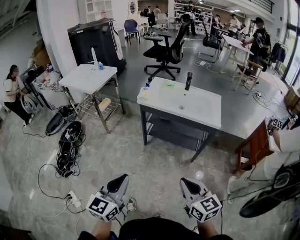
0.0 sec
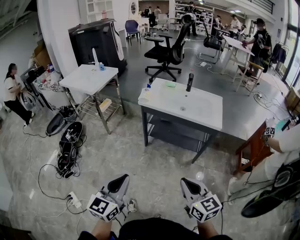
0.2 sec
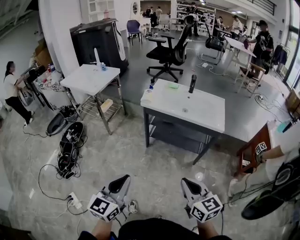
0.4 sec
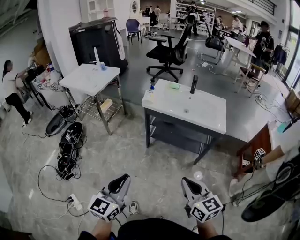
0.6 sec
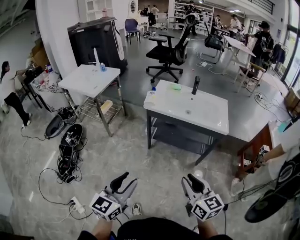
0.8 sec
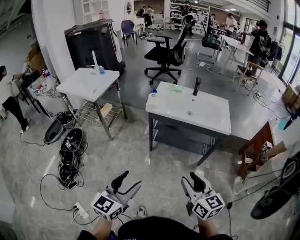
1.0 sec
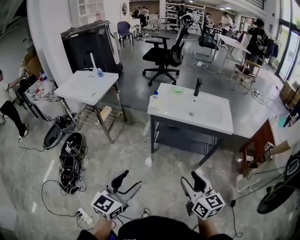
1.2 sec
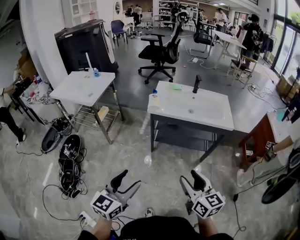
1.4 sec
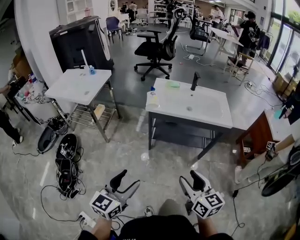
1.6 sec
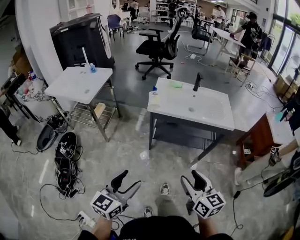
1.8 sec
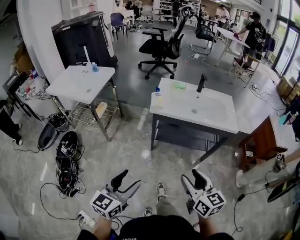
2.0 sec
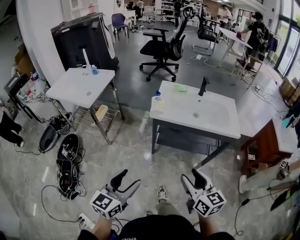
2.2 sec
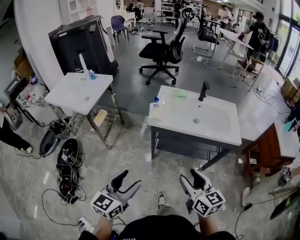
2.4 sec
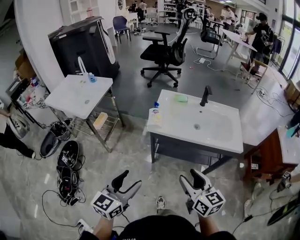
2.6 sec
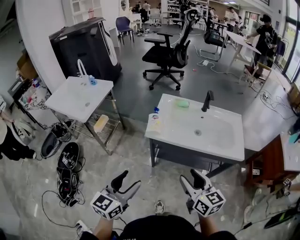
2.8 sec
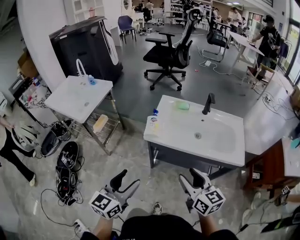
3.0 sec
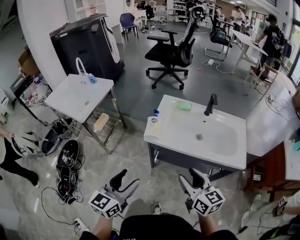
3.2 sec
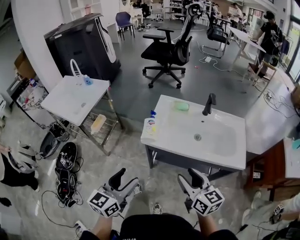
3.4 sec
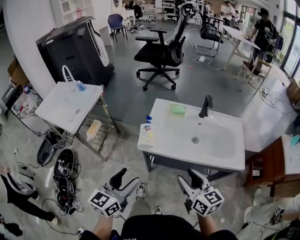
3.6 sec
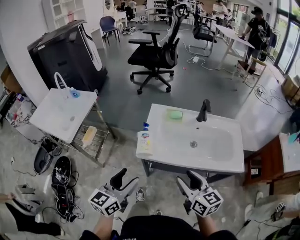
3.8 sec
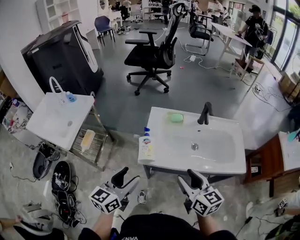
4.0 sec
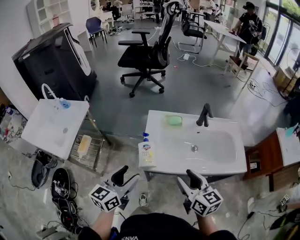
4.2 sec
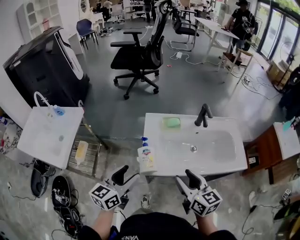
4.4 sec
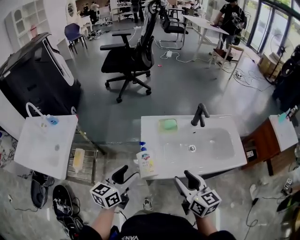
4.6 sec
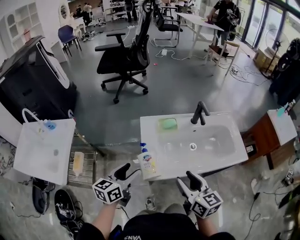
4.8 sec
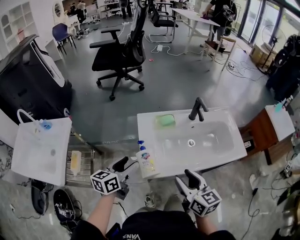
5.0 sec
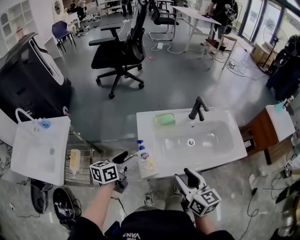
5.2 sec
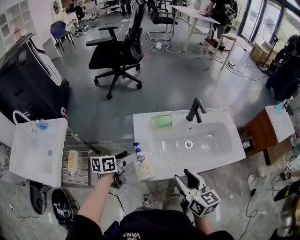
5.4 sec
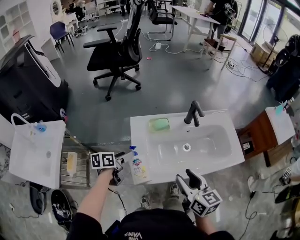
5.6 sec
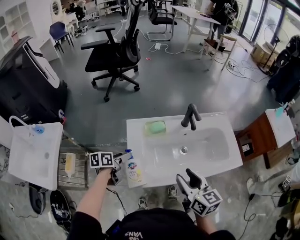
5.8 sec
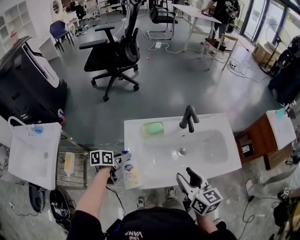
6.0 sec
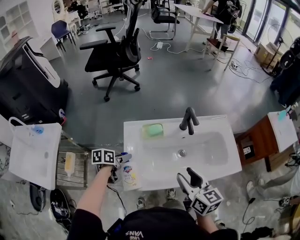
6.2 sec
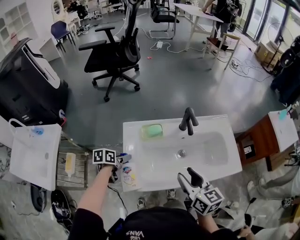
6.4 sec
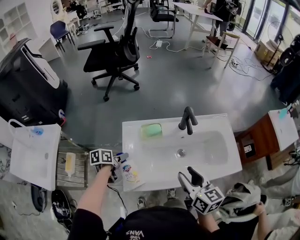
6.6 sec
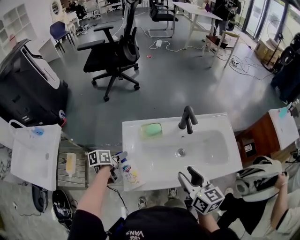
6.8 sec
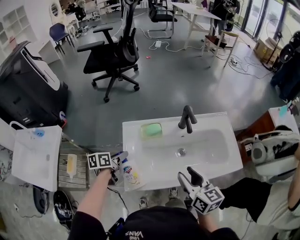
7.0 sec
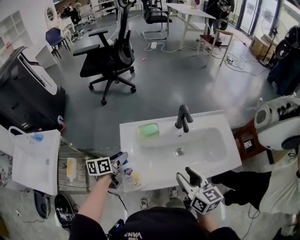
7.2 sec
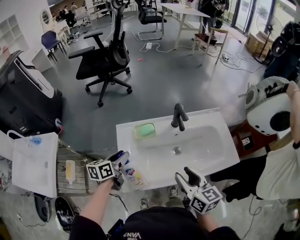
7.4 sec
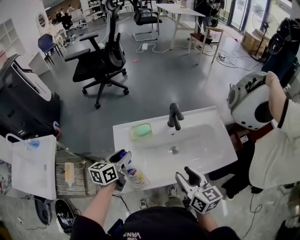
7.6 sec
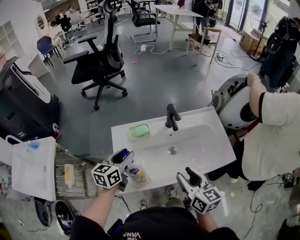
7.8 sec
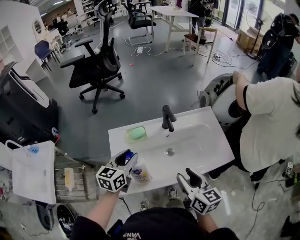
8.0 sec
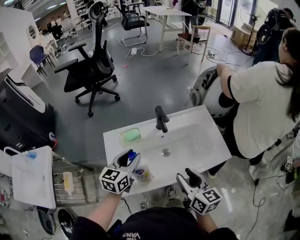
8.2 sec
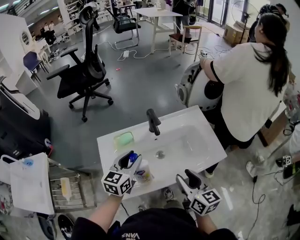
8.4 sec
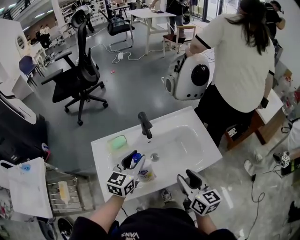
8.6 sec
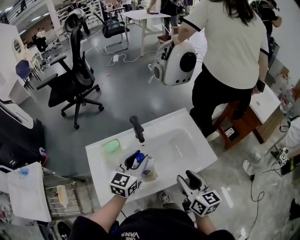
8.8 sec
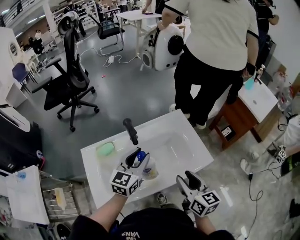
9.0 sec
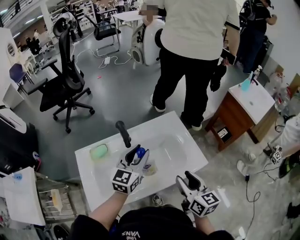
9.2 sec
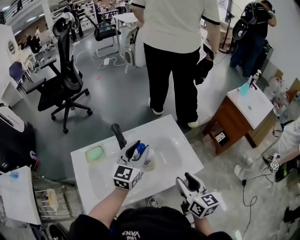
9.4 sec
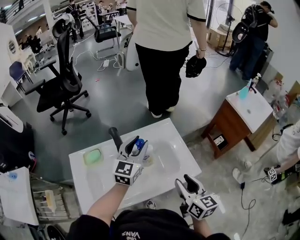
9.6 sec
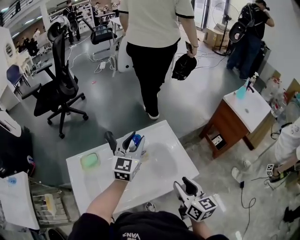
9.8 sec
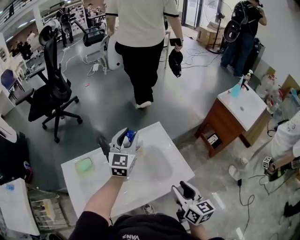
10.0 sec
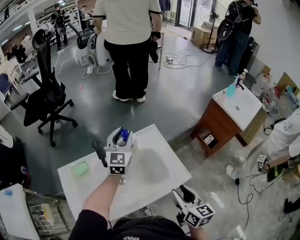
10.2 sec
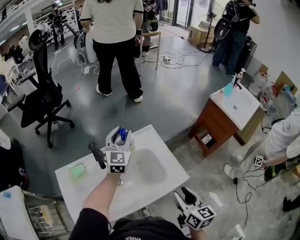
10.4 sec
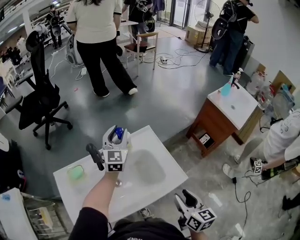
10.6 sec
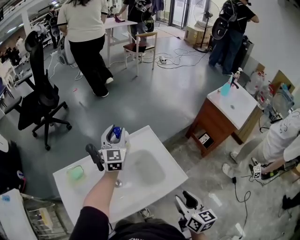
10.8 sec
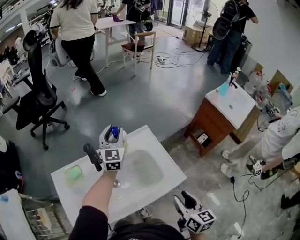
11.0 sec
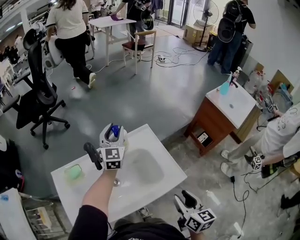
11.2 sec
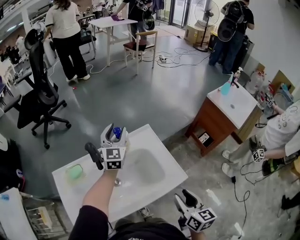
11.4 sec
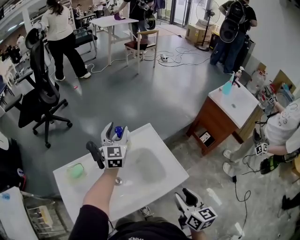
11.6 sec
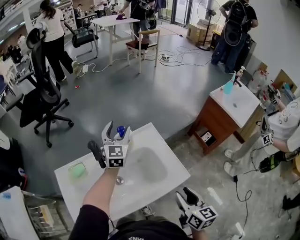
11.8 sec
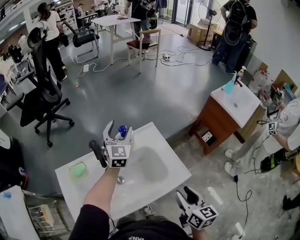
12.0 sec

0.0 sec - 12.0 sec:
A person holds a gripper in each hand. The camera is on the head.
0.0 sec - 1.6 sec: Both grippers move to the left and forward, about 20 cm. The left gripper opens up. Meanwhile the right gripper opens.
1.6 sec - 3.0 sec: The two grippers go about 25 cm forward.
3.0 sec - 4.4 sec: The grippers both shift forward by some 25 cm. The left gripper swivels about 20 degrees.
4.4 sec - 6.0 sec: The left gripper travels forward and downward by about 25 cm, and rotates about 40 degrees. The right gripper goes some 10 cm forward and to the right.
6.0 sec - 7.6 sec: The left gripper is displaced upward and to the right by some 15 cm, turns by about 30 degrees, and closes its fingers.
7.6 sec - 9.0 sec: The right gripper goes about 20 cm to the right. The left gripper travels to the right by some 30 cm, and swivels some 30 degrees.
9.0 sec - 10.4 sec: The right gripper heads to the right, covering approximately 10 cm, while the left gripper shifts about 20 cm forward, and rotates some 20 degrees.
10.4 sec - 12.0 sec: The left gripper opens its fingers.

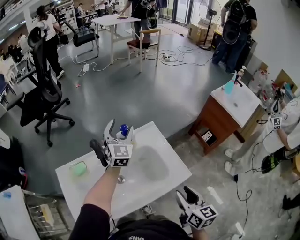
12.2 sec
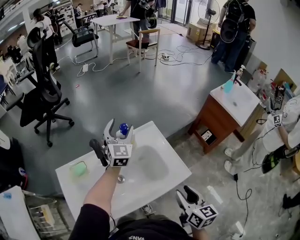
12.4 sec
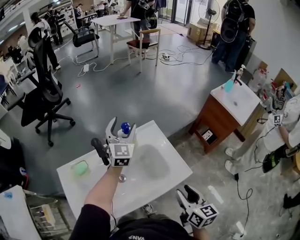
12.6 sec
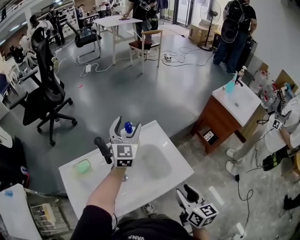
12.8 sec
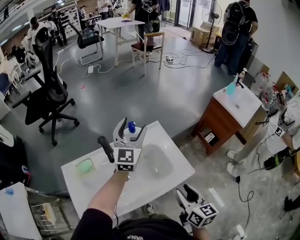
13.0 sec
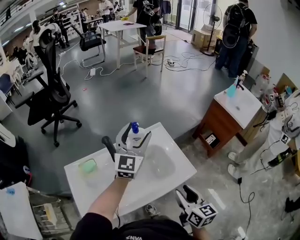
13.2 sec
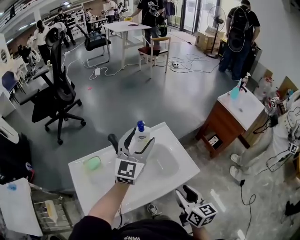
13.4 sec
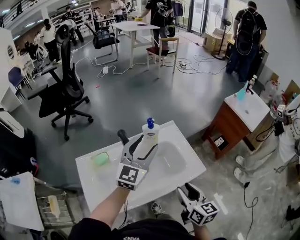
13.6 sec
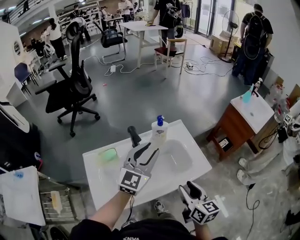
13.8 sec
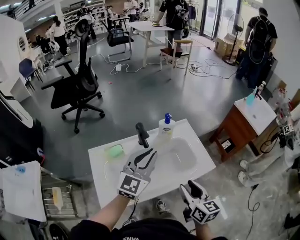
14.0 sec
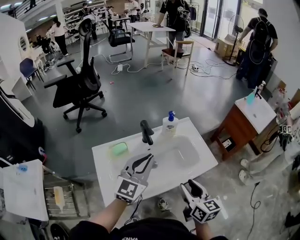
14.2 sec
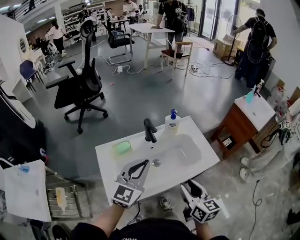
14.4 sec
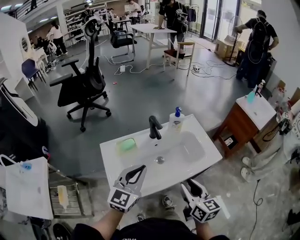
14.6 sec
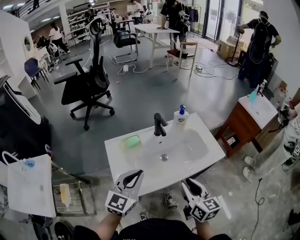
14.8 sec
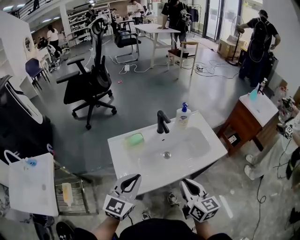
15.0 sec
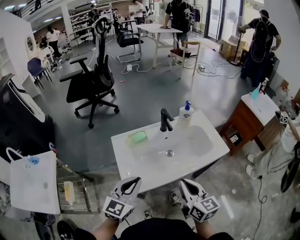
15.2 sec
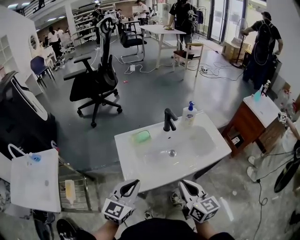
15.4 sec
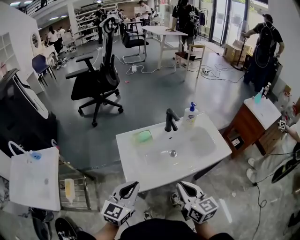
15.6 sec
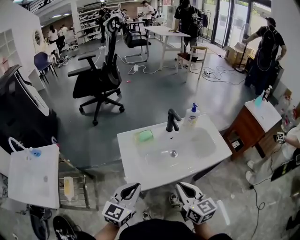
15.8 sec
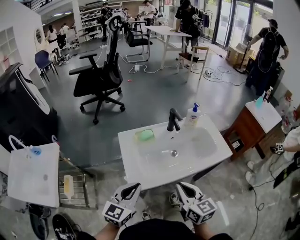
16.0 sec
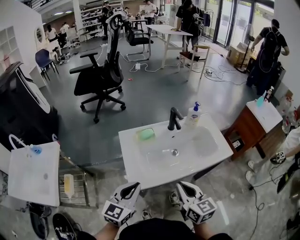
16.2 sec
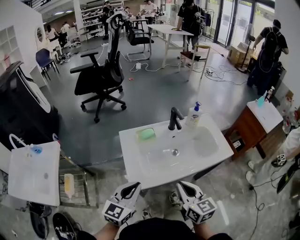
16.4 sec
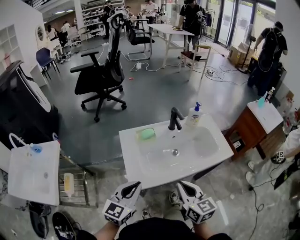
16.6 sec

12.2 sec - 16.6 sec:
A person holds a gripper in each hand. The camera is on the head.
12.2 sec - 13.6 sec: The right gripper travels to the left by approximately 10 cm. The left gripper heads backward and upward, covering about 20 cm, and turns by roughly 20 degrees.
13.6 sec - 15.2 sec: The left gripper is displaced backward and to the left by about 40 cm, and closes. The right gripper is displaced to the left and backward by about 25 cm, and closes up.
15.2 sec - 16.6 sec: The left gripper moves some 5 cm.

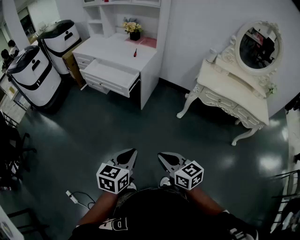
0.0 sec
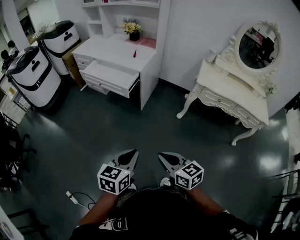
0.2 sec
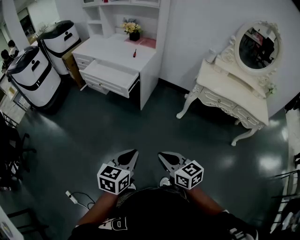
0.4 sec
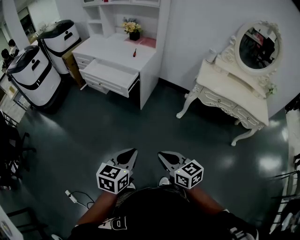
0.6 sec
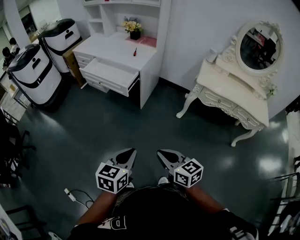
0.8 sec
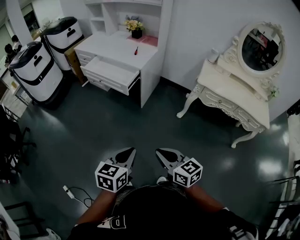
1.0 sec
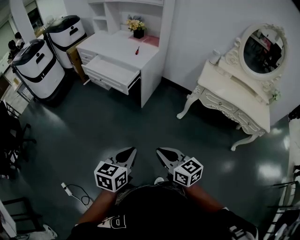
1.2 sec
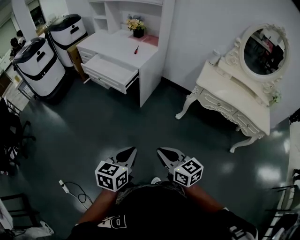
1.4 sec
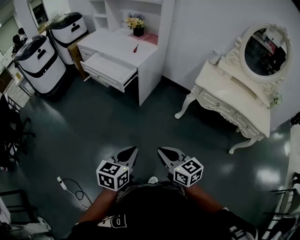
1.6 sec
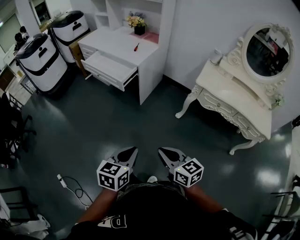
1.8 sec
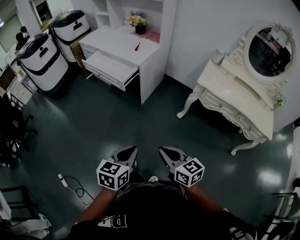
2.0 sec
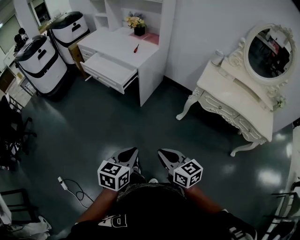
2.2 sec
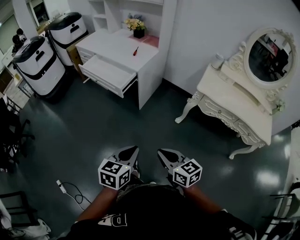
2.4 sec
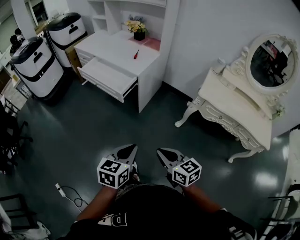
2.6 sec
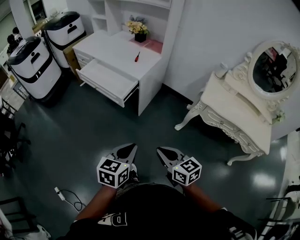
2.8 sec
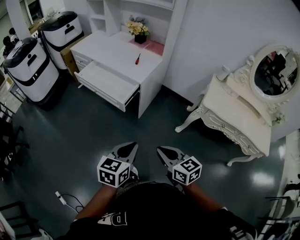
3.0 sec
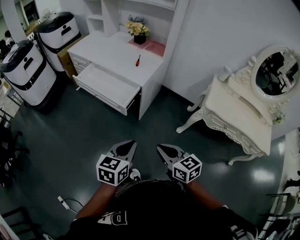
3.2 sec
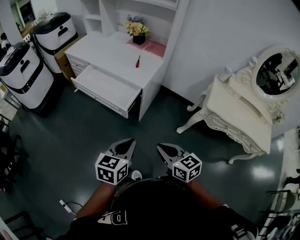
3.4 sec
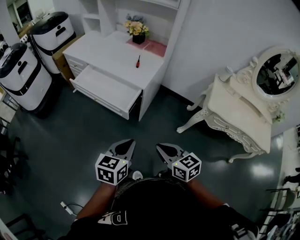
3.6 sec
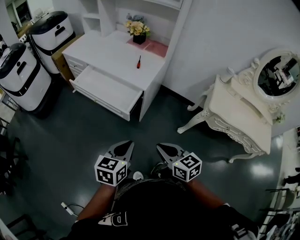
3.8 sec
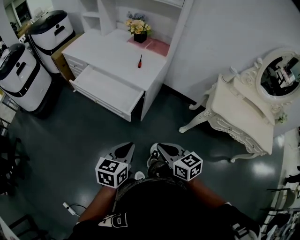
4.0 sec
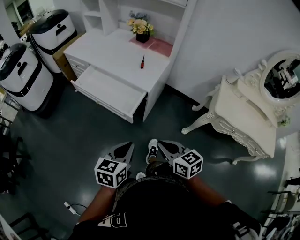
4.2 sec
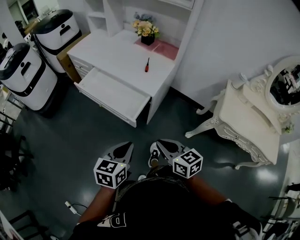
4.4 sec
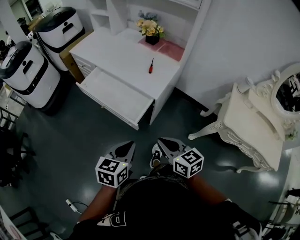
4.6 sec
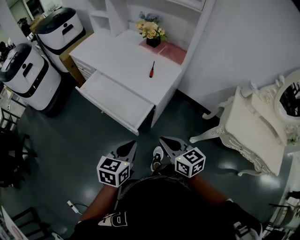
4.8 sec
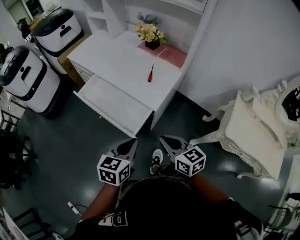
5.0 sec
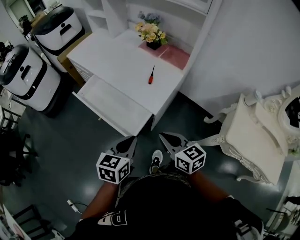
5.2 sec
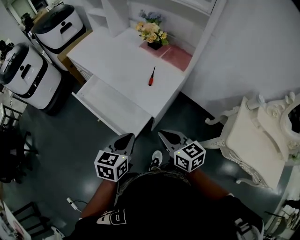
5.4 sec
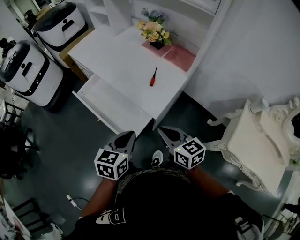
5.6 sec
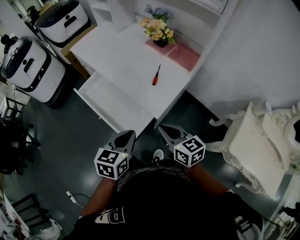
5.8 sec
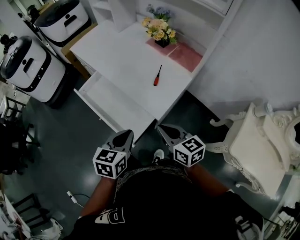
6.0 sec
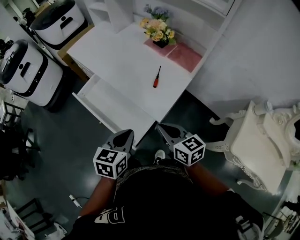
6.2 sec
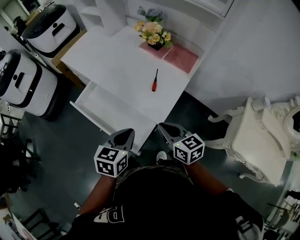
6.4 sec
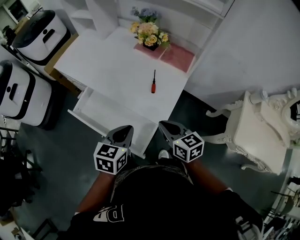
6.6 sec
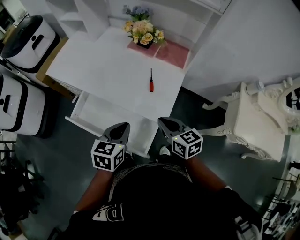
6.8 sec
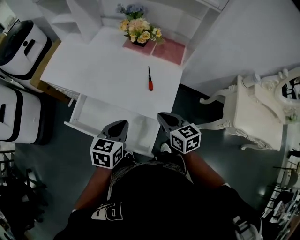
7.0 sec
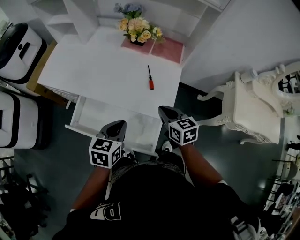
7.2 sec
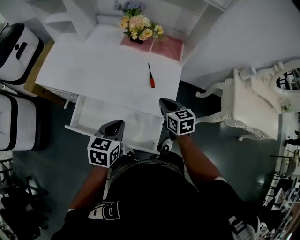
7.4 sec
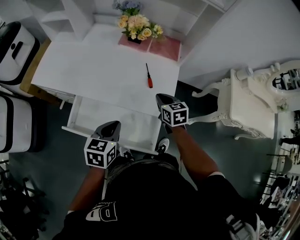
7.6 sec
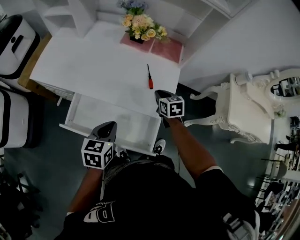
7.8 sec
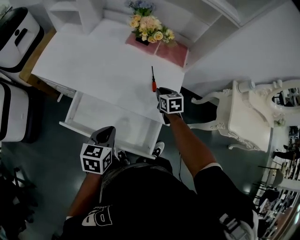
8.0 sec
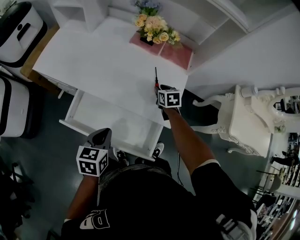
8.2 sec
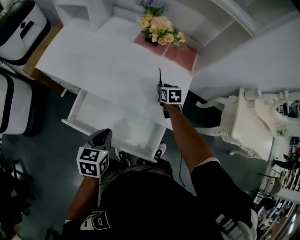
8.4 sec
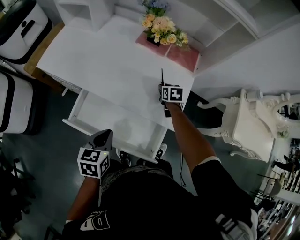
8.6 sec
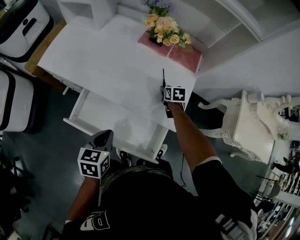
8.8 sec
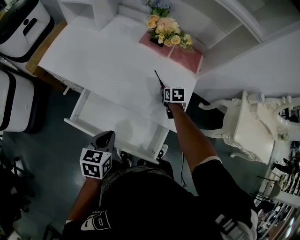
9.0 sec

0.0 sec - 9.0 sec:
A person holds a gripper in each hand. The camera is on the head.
0.0 sec - 1.6 sec: Both grippers travel together to the right, approximately 10 cm.
1.6 sec - 3.0 sec: The grippers both shift forward by roughly 25 cm.
3.0 sec - 4.4 sec: The left gripper is displaced forward and to the left by roughly 20 cm. Meanwhile the right gripper shifts about 20 cm forward.
4.4 sec - 6.0 sec: Both grippers travel together forward, approximately 25 cm.
6.0 sec - 7.6 sec: The right gripper shifts by some 20 cm, and rotates about 40 degrees, while the left gripper moves some 25 cm, and rotates about 30 degrees.
7.6 sec - 9.0 sec: The right gripper shifts approximately 20 cm forward and downward, and opens. The left gripper is displaced to the left by about 5 cm.
